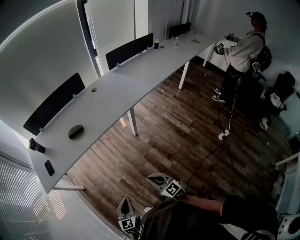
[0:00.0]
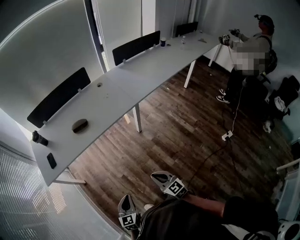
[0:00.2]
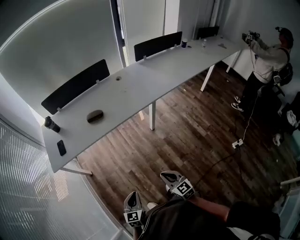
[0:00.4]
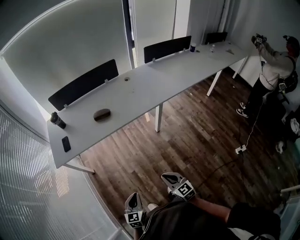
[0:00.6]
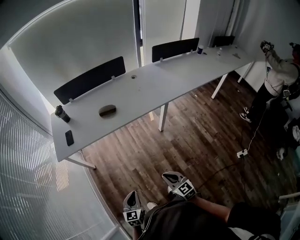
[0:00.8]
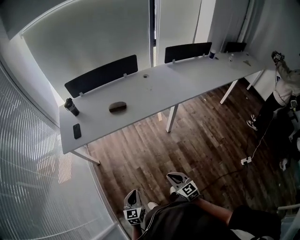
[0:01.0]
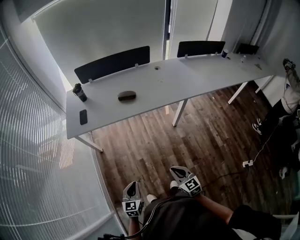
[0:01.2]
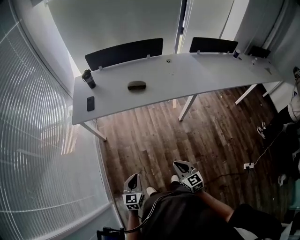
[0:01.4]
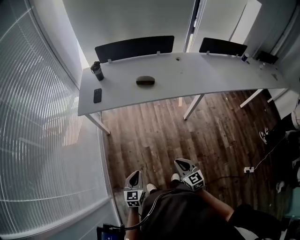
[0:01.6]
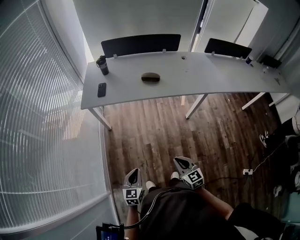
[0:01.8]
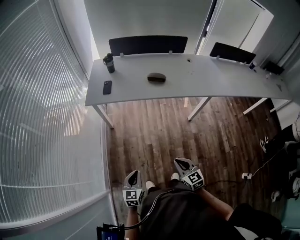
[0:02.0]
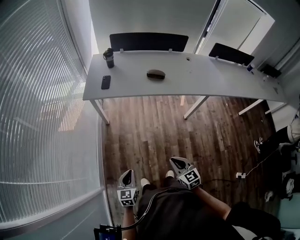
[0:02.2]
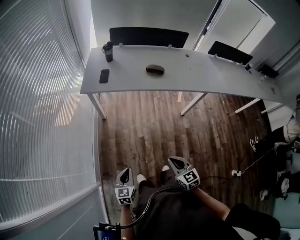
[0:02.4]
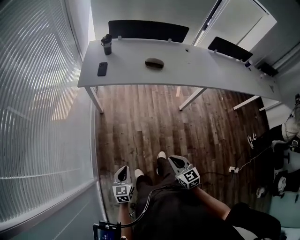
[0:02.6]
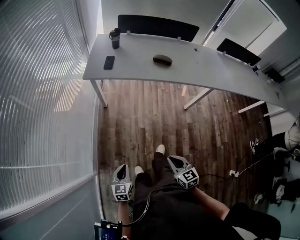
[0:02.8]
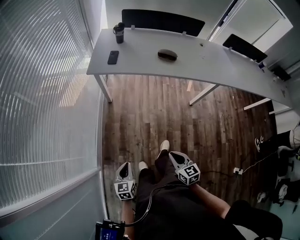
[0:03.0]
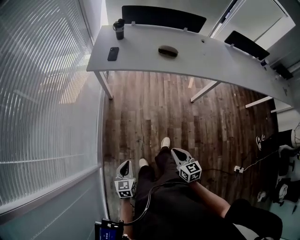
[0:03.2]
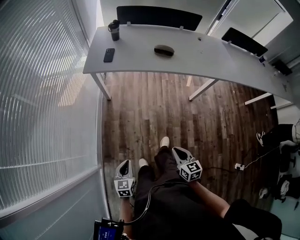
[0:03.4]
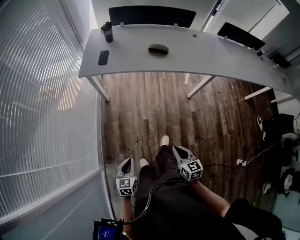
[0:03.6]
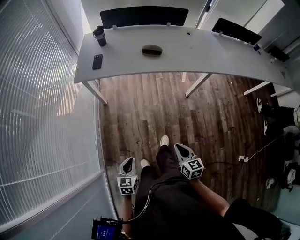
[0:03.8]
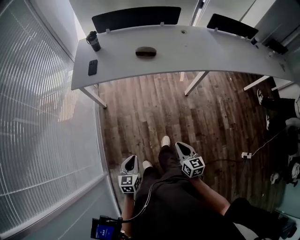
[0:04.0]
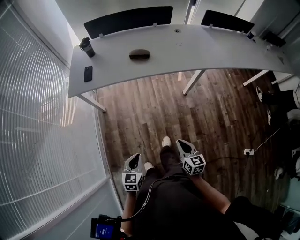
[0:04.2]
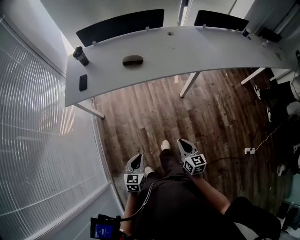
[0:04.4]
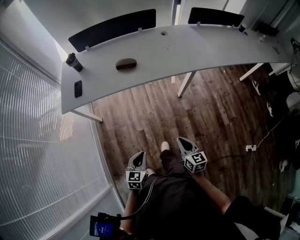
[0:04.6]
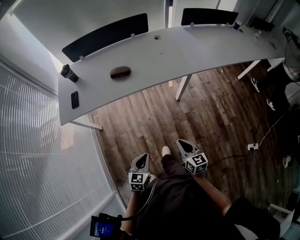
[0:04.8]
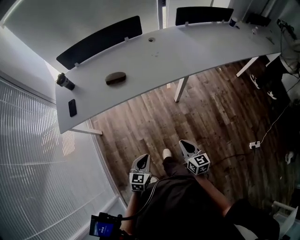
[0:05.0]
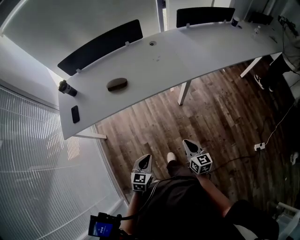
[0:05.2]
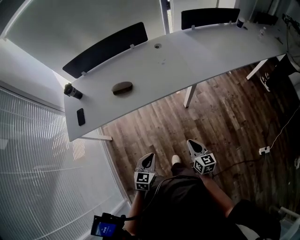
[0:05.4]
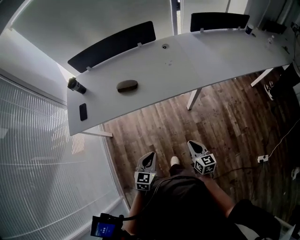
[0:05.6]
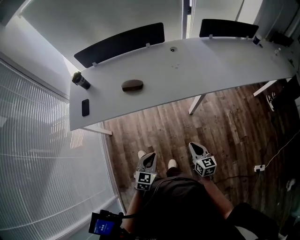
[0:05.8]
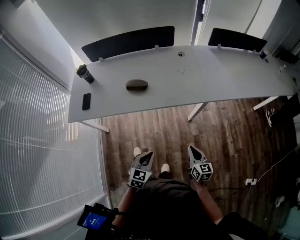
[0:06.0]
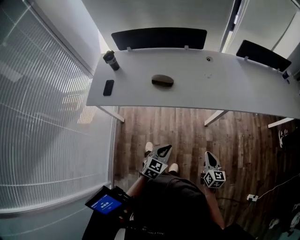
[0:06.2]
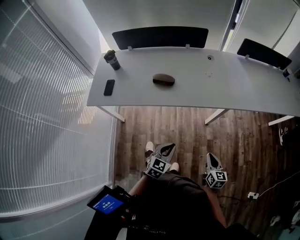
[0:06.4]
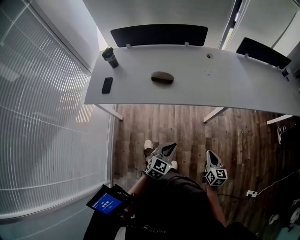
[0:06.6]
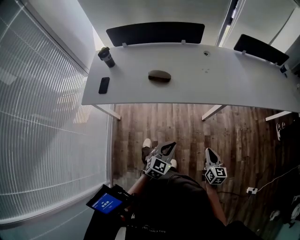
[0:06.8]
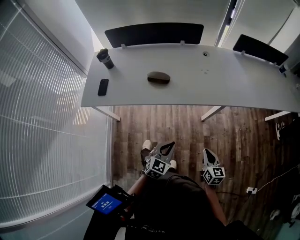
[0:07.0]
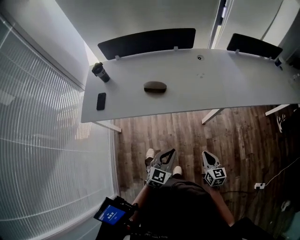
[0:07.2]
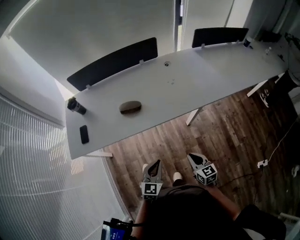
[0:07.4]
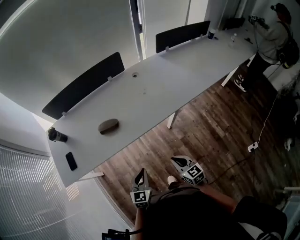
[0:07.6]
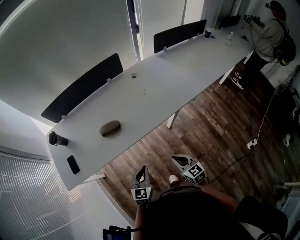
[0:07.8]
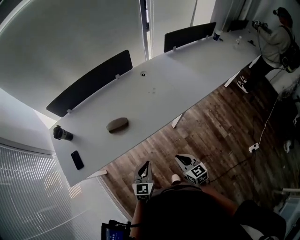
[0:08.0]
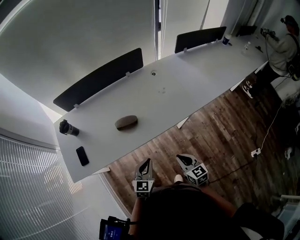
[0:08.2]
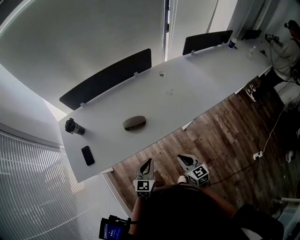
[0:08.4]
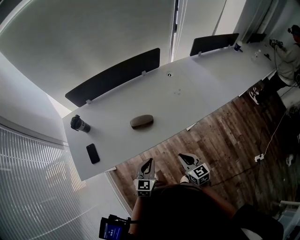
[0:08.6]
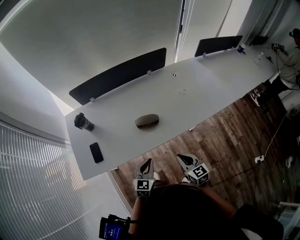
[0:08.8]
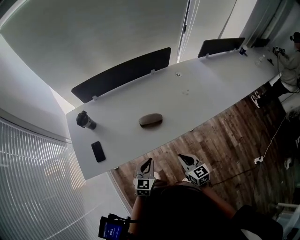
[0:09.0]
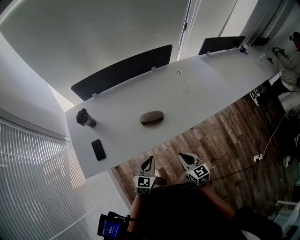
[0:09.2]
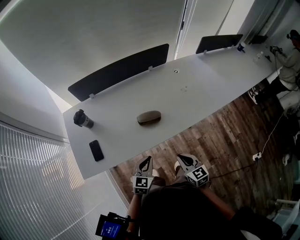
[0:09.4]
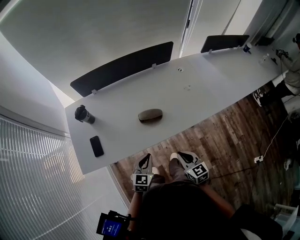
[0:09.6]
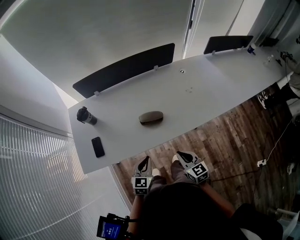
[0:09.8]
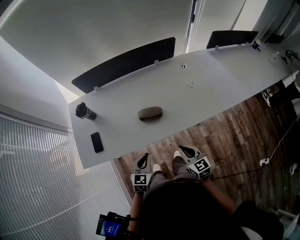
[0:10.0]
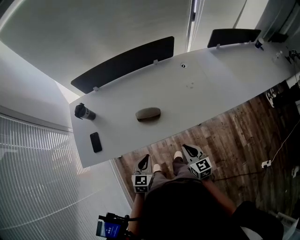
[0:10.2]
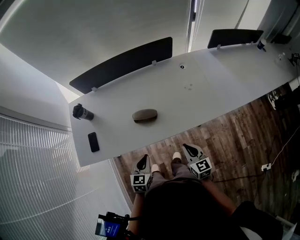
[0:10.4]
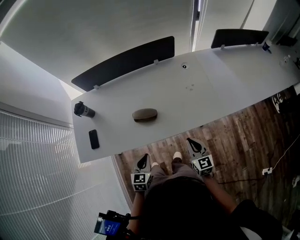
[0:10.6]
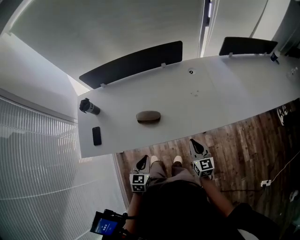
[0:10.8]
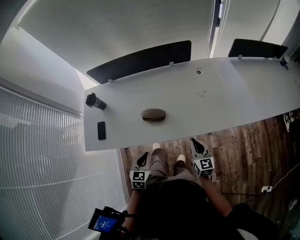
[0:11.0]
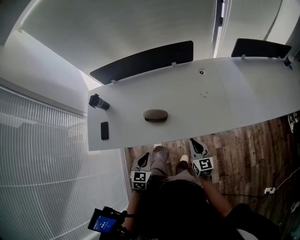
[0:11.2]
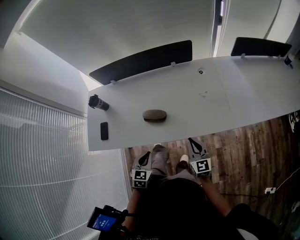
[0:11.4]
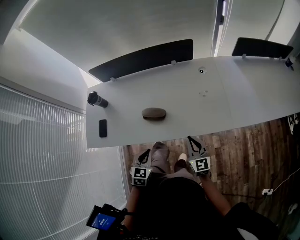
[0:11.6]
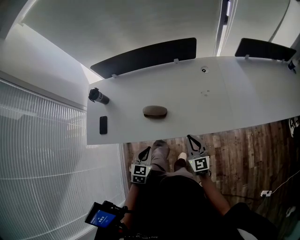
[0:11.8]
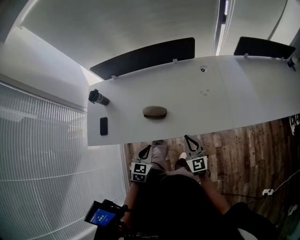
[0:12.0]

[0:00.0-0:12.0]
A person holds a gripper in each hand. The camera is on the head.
0:00.0 to 0:01.6: Both grippers travel together to the left, approximately 10 cm.
0:01.6 to 0:03.0: The right gripper heads to the left, covering roughly 10 cm. Meanwhile the left gripper is displaced to the left, backward and downward by about 15 cm.
0:03.0 to 0:04.4: Both grippers travel together to the right and forward, about 25 cm. The right gripper rotates roughly 30 degrees, while the left gripper swivels roughly 20 degrees.
0:04.4 to 0:06.0: The grippers both shift forward and to the right by approximately 25 cm.
0:06.0 to 0:07.6: The right gripper is displaced to the left by approximately 10 cm. The left gripper heads forward, covering some 10 cm.
0:07.6 to 0:09.0: The right gripper heads to the left, covering roughly 25 cm. The left gripper is displaced to the left and forward by some 25 cm.
0:09.0 to 0:10.4: The right gripper shifts some 15 cm to the right and forward; the left gripper goes approximately 5 cm to the right.
0:10.4 to 0:12.0: The left gripper changes place by some 5 cm. The right gripper heads forward, covering approximately 5 cm.

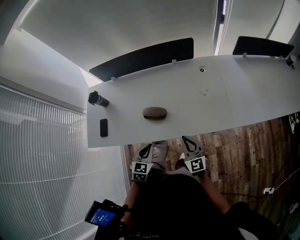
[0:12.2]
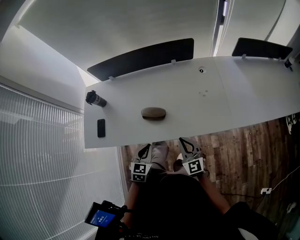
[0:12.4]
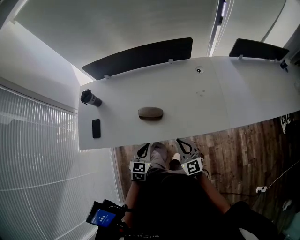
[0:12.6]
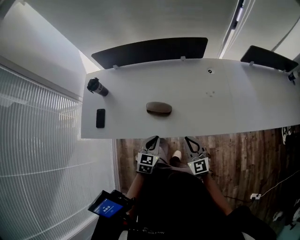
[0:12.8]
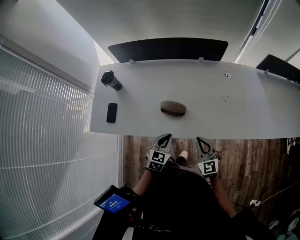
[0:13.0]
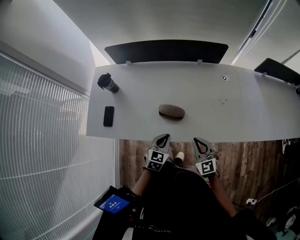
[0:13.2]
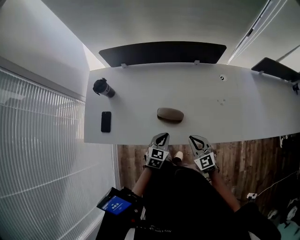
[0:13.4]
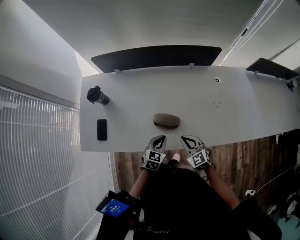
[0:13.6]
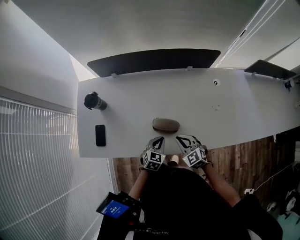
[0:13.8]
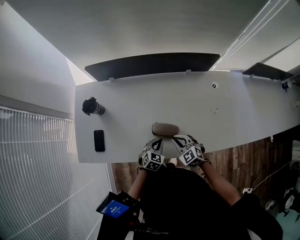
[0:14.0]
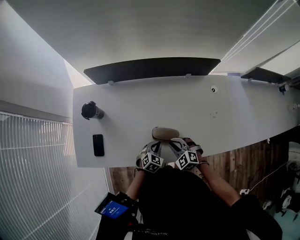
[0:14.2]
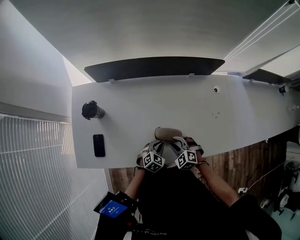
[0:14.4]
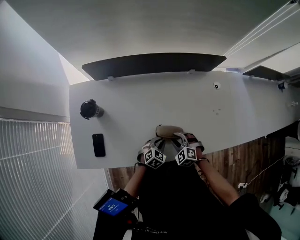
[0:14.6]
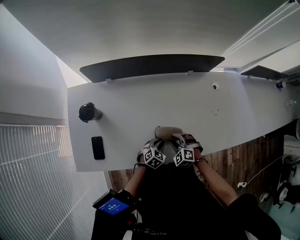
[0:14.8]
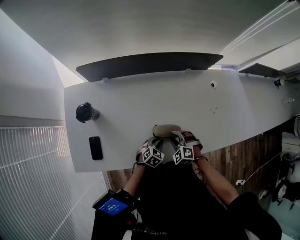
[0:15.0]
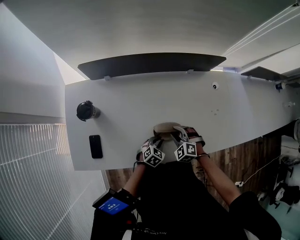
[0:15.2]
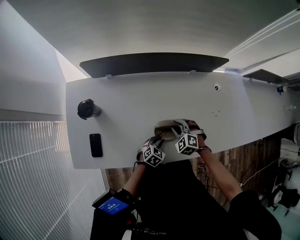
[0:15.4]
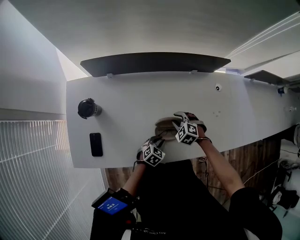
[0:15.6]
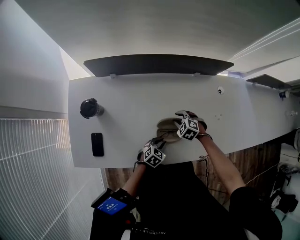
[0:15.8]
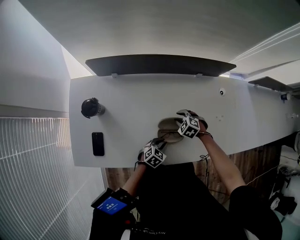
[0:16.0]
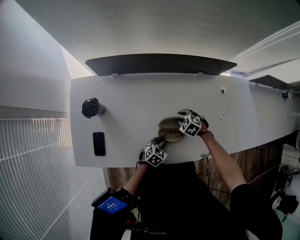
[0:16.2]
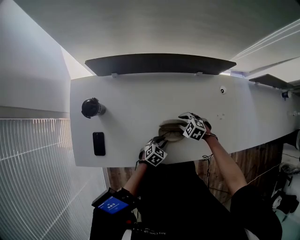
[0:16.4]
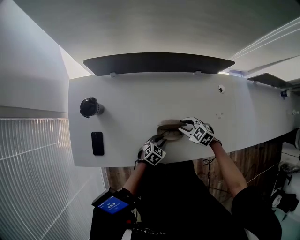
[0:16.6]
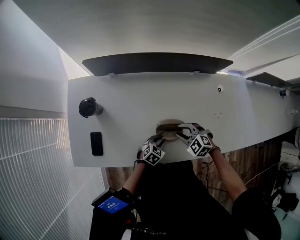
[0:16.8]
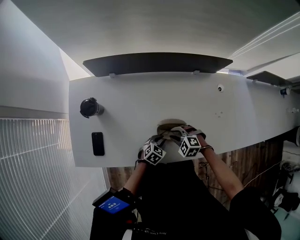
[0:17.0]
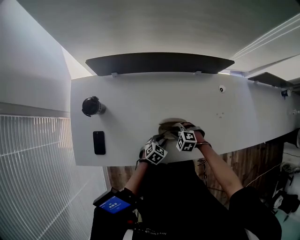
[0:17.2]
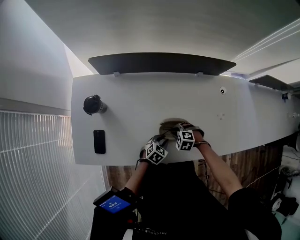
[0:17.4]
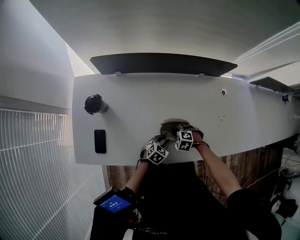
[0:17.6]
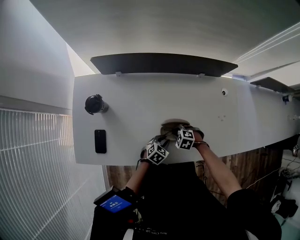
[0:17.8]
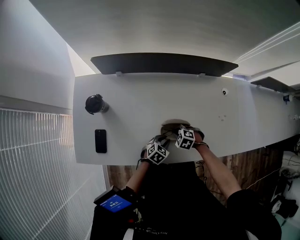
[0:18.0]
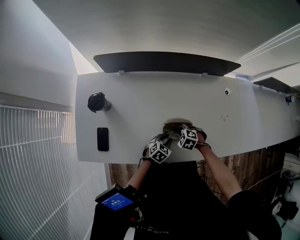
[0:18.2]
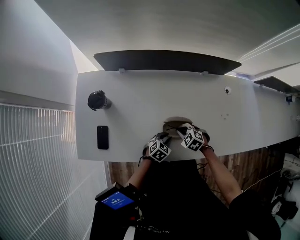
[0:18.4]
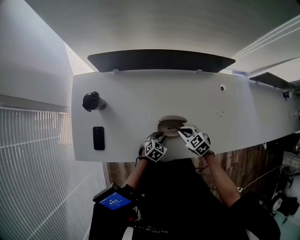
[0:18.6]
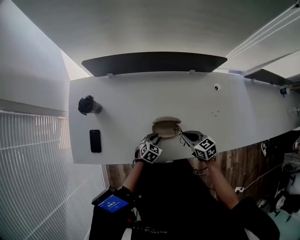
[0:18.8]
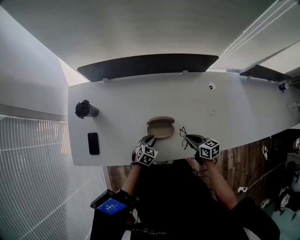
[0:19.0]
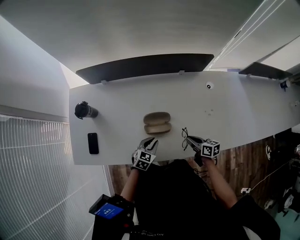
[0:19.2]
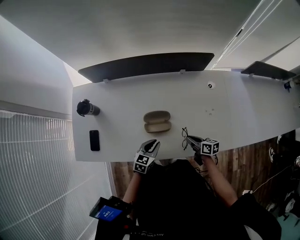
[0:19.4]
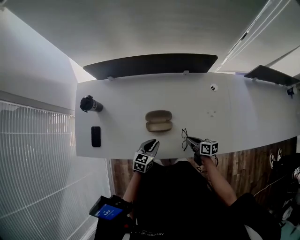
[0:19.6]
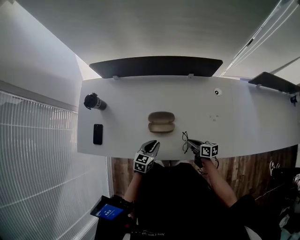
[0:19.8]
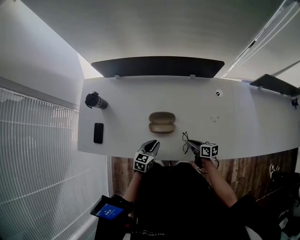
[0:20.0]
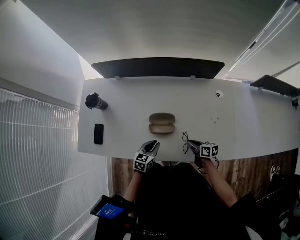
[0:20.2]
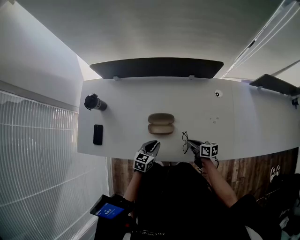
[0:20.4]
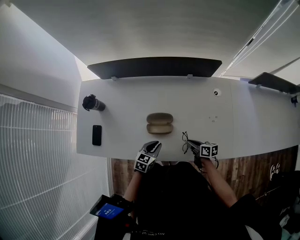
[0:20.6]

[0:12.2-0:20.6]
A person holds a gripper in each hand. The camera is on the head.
0:12.2 to 0:13.6: The left gripper shifts roughly 15 cm forward and downward. The right gripper heads to the left, forward and downward, covering about 15 cm, and swivels approximately 30 degrees.
0:13.6 to 0:15.0: The left gripper goes about 10 cm downward and forward, and swivels roughly 20 degrees, while the right gripper heads downward, forward and to the left, covering roughly 15 cm, turns by roughly 40 degrees, and opens.
0:15.0 to 0:16.4: The right gripper shifts by roughly 10 cm, and changes its angle by approximately 20 degrees.
0:16.4 to 0:17.8: The right gripper ends up some 10 cm from where it was.
0:17.8 to 0:19.2: The left gripper travels upward by roughly 5 cm. The right gripper shifts by approximately 20 cm, and rolls clockwise, seen from behind, by roughly 70 degrees.
0:19.2 to 0:20.6: The grippers stay close to where they were, moving slightly.

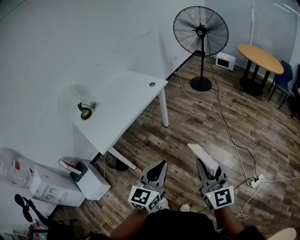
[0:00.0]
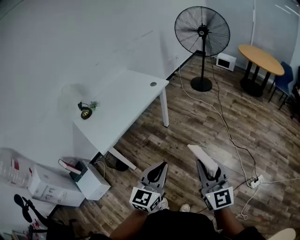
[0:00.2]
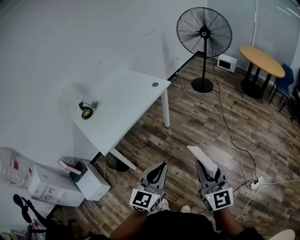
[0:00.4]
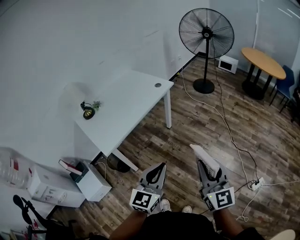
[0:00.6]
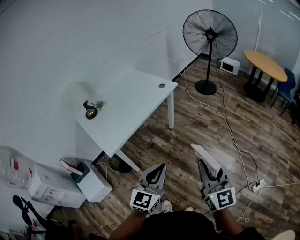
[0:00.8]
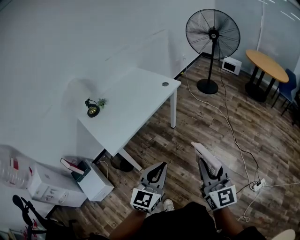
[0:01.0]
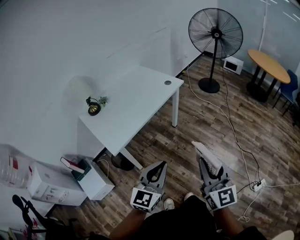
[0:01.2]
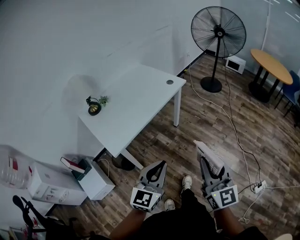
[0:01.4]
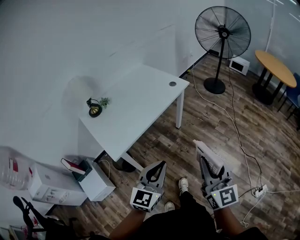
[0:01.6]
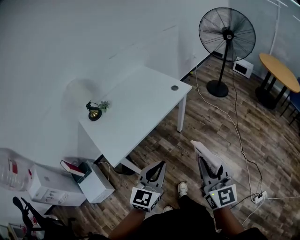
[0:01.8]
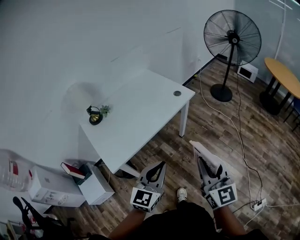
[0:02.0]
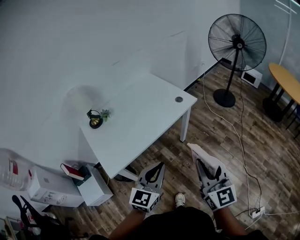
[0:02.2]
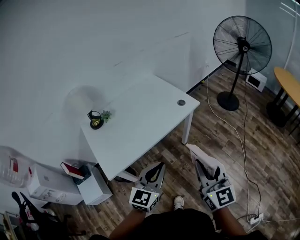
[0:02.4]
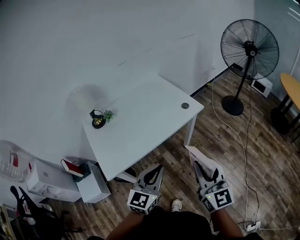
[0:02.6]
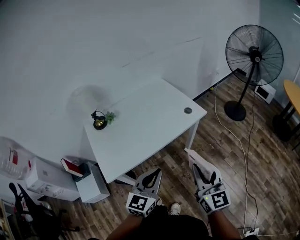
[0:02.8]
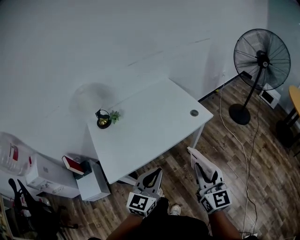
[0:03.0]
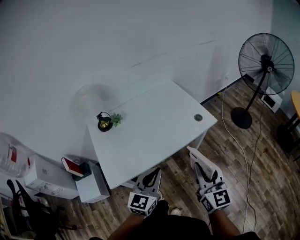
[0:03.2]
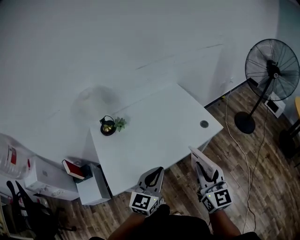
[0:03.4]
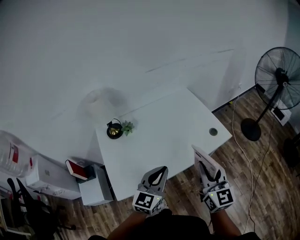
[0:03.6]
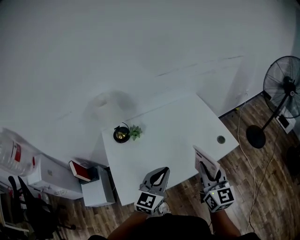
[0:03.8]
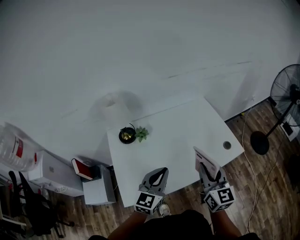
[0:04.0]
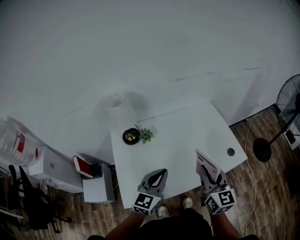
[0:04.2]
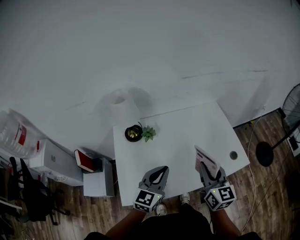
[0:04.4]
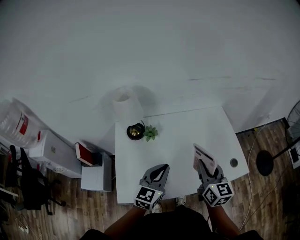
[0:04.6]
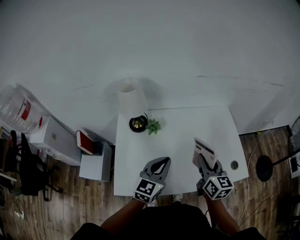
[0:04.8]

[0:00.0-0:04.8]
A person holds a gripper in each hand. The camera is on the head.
0:00.0 to 0:01.6: Both grippers travel together to the left and forward, some 20 cm.
0:01.6 to 0:03.2: Both grippers move forward, roughly 30 cm. The left gripper rotates roughly 20 degrees.
0:03.2 to 0:04.8: Both grippers travel together forward and to the left, approximately 30 cm. The right gripper rotates approximately 30 degrees.
